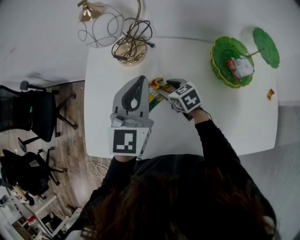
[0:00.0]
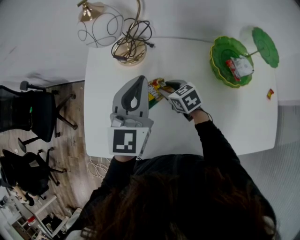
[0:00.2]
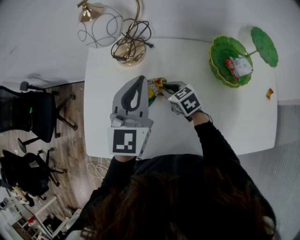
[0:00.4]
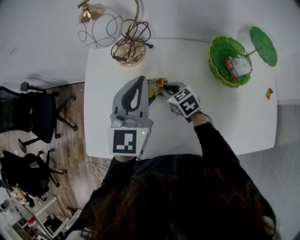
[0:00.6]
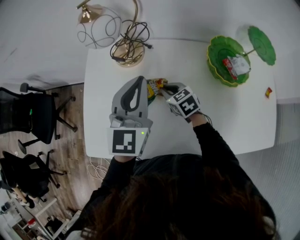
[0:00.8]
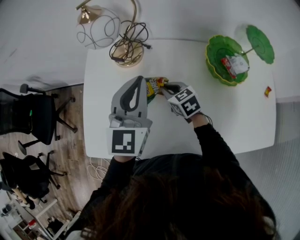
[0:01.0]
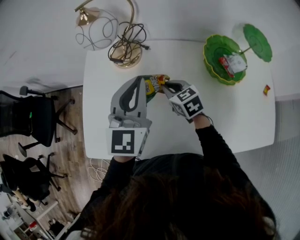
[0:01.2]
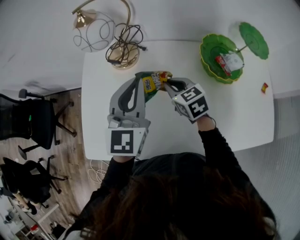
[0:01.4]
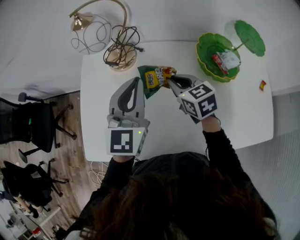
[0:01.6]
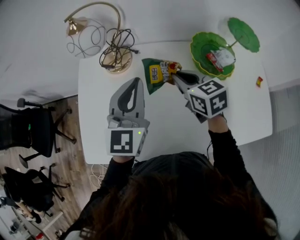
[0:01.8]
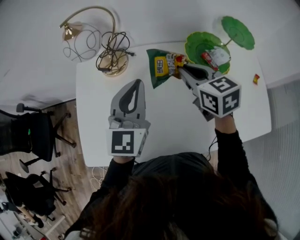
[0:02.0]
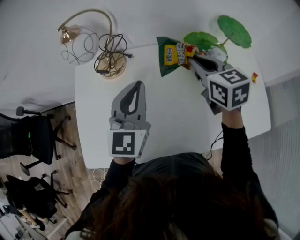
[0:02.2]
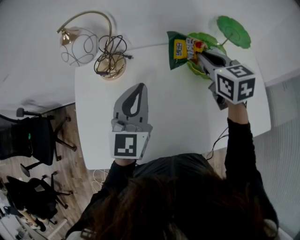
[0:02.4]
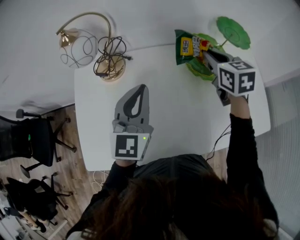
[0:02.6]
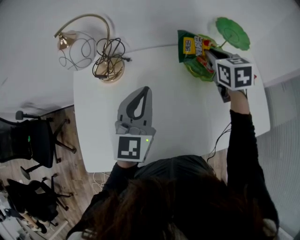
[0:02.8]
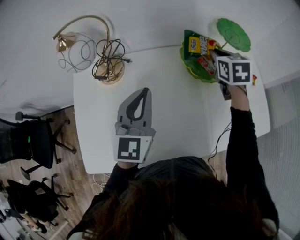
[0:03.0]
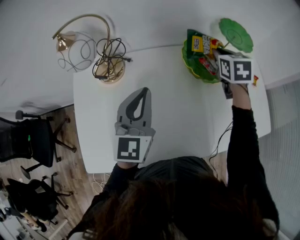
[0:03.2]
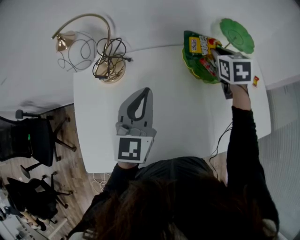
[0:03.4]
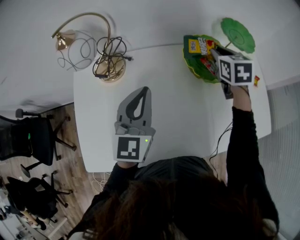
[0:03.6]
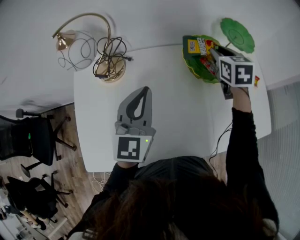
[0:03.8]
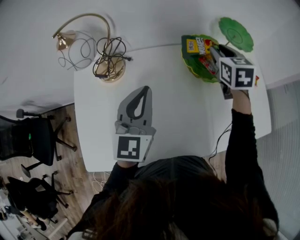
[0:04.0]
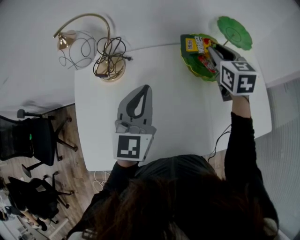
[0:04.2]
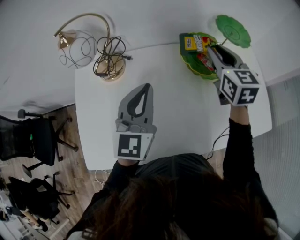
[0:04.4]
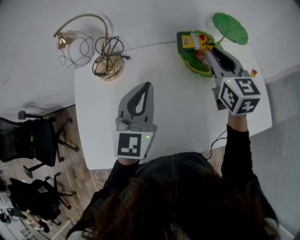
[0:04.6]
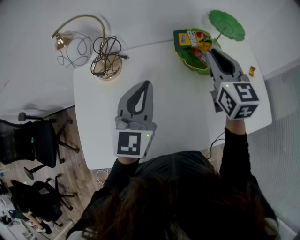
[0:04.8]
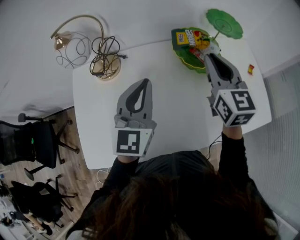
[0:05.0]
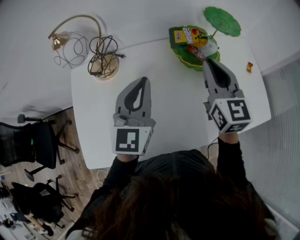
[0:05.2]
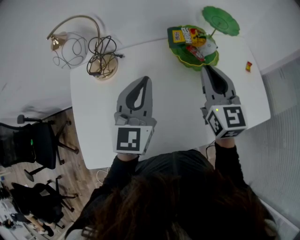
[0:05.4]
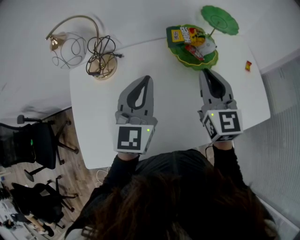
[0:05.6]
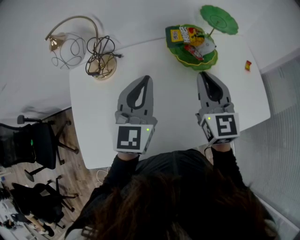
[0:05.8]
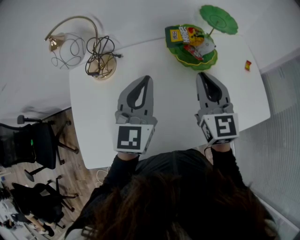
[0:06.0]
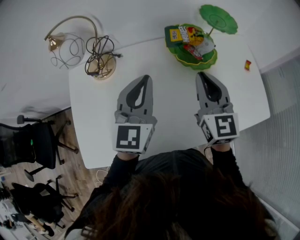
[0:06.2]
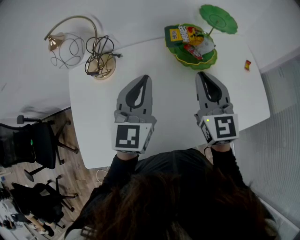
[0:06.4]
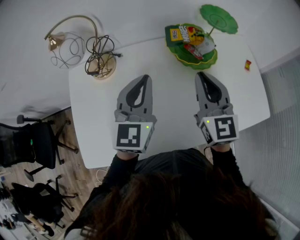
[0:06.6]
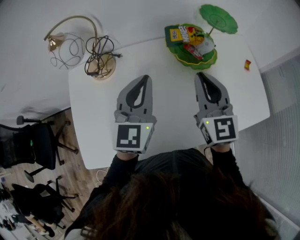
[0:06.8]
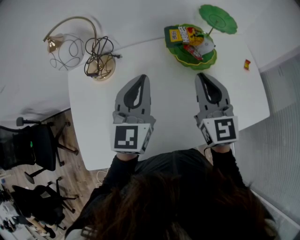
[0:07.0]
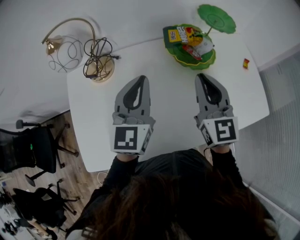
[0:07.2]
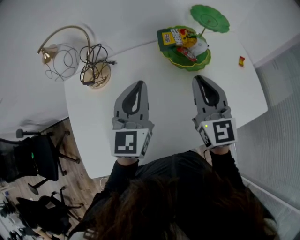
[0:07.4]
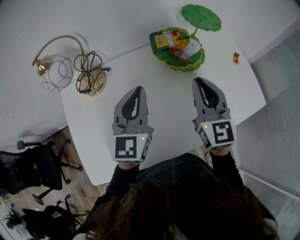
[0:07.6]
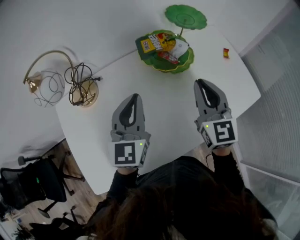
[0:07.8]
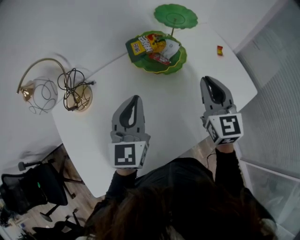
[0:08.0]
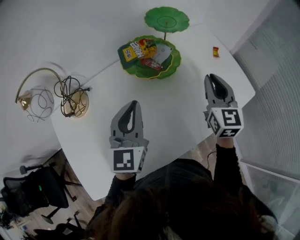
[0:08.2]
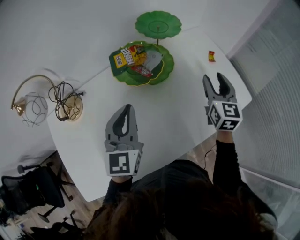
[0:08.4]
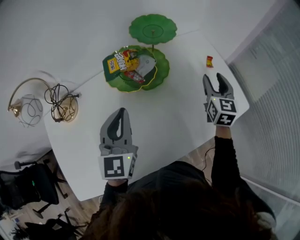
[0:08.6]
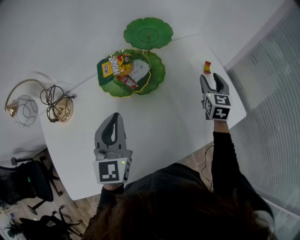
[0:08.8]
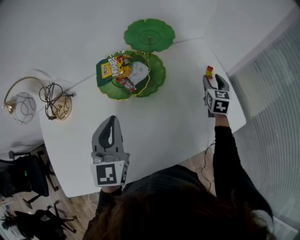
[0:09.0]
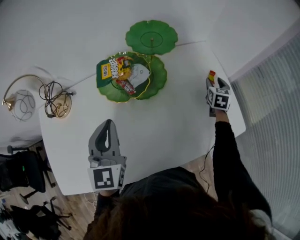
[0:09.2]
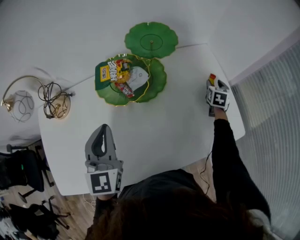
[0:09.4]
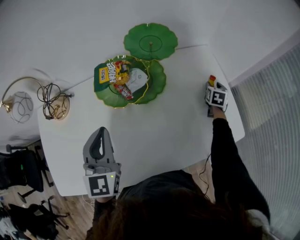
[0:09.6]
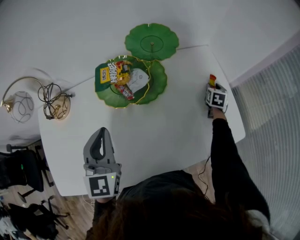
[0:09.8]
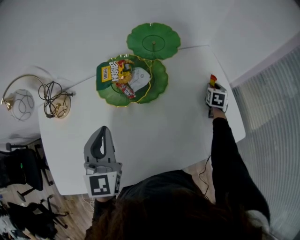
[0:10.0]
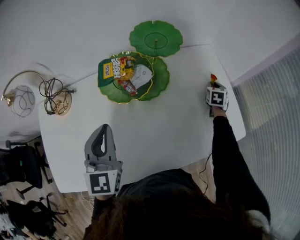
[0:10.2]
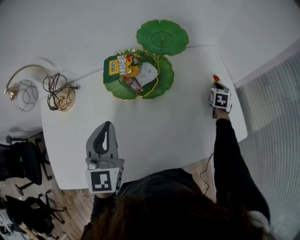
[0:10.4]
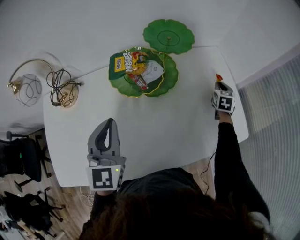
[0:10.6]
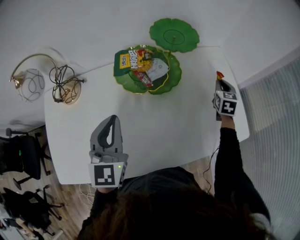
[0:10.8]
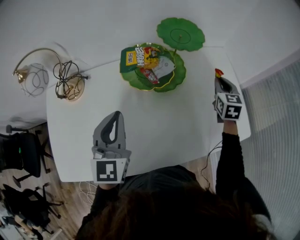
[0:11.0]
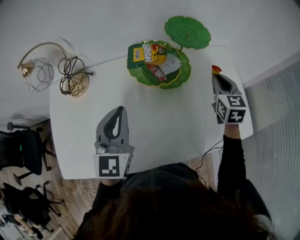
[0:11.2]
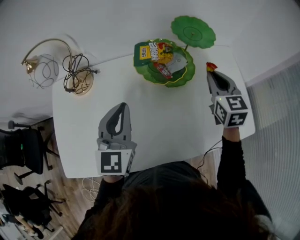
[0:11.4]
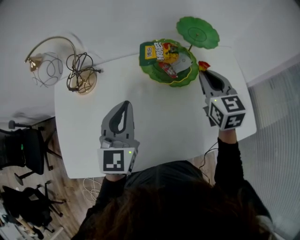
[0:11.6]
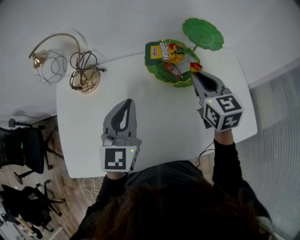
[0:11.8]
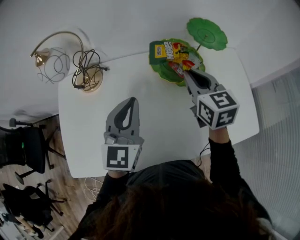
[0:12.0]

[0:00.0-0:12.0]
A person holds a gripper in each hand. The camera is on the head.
0:00.0 to 0:01.6: The right gripper moves upward and to the right, about 15 cm, and closes up.
0:01.6 to 0:03.0: The left gripper goes approximately 5 cm to the right. The right gripper travels to the right and forward by about 25 cm, and swivels about 30 degrees.
0:03.0 to 0:04.4: The right gripper goes some 5 cm upward, and rotates approximately 20 degrees.
0:04.4 to 0:06.0: The right gripper heads backward, covering about 15 cm.
0:06.0 to 0:07.6: There are only small adjustments of the grippers.
0:07.6 to 0:09.0: The left gripper goes roughly 10 cm to the right, while the right gripper is displaced to the right, forward and downward by about 40 cm, swivels about 30 degrees, and opens.
0:09.0 to 0:10.4: The right gripper goes approximately 10 cm downward and forward, and closes up.
0:10.4 to 0:12.0: The right gripper heads to the left and upward, covering about 50 cm, and rotates approximately 40 degrees, while the left gripper is displaced to the left by roughly 10 cm.

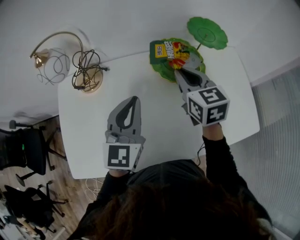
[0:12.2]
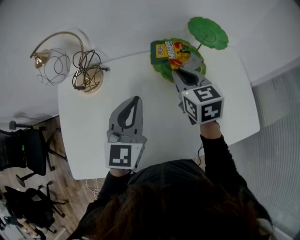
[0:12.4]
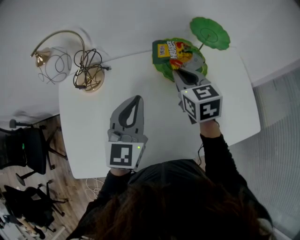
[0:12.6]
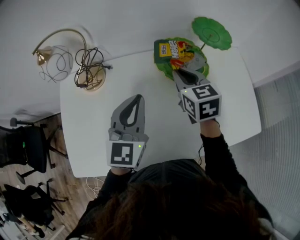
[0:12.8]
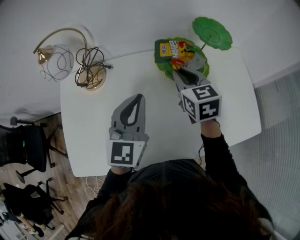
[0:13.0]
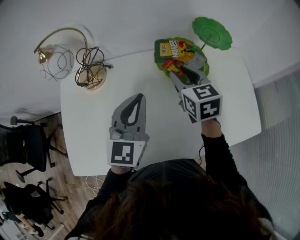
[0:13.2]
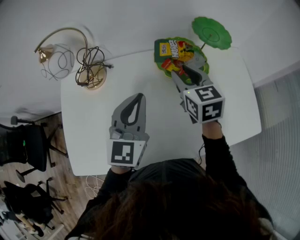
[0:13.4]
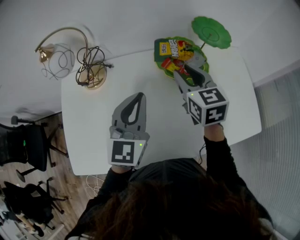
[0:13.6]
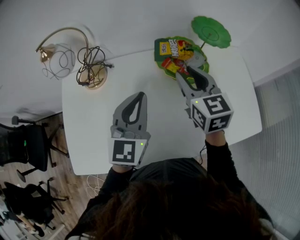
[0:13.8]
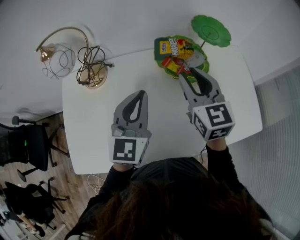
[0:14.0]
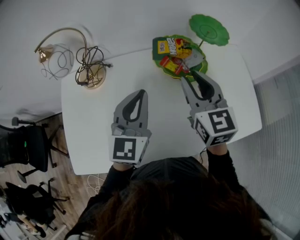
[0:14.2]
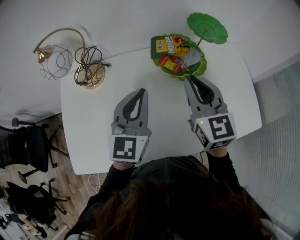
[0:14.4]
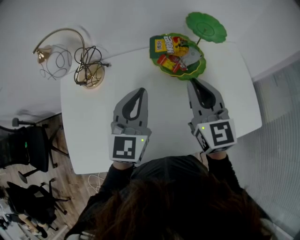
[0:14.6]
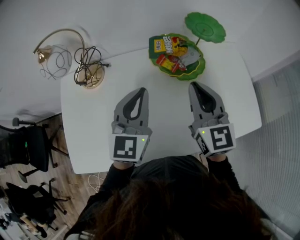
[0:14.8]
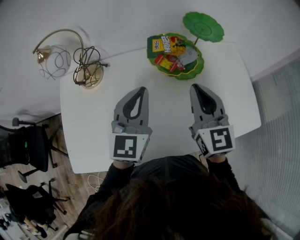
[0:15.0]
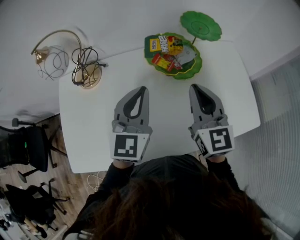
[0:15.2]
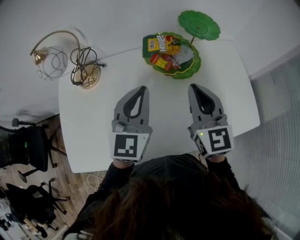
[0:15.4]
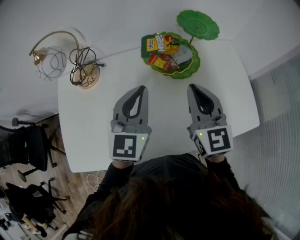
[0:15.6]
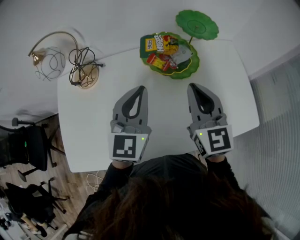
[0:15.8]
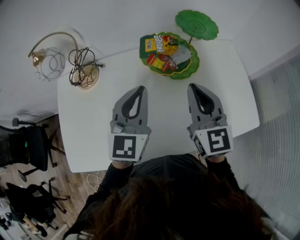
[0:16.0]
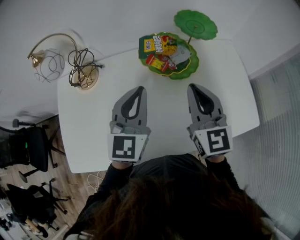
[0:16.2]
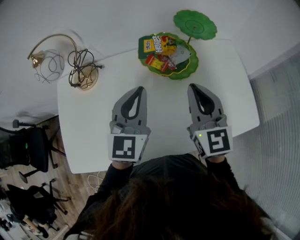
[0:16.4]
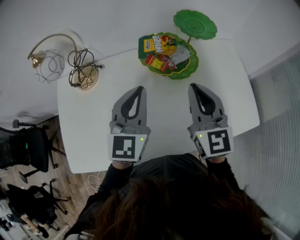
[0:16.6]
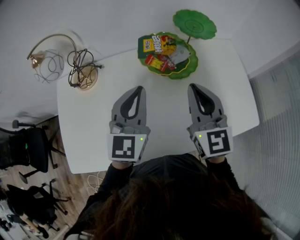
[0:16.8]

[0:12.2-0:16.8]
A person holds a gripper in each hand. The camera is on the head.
0:12.2 to 0:13.8: The grippers move only a little.
0:13.8 to 0:15.2: The right gripper is displaced backward and to the right by some 10 cm.
0:15.2 to 0:16.8: The grippers move only a little.

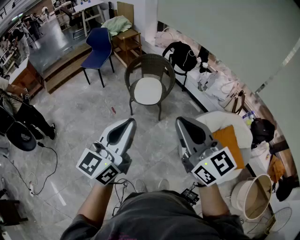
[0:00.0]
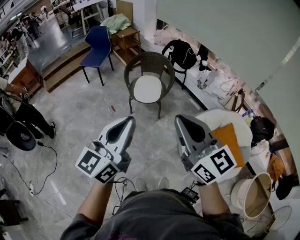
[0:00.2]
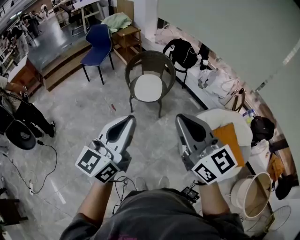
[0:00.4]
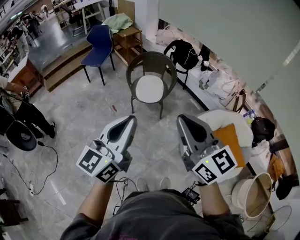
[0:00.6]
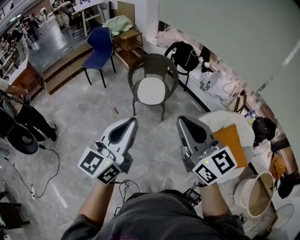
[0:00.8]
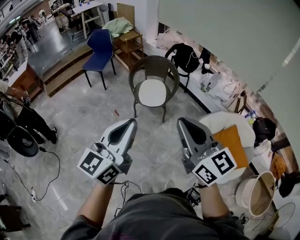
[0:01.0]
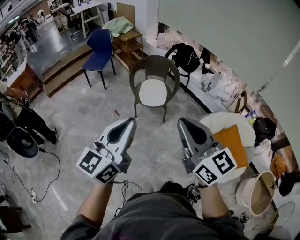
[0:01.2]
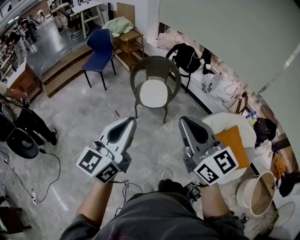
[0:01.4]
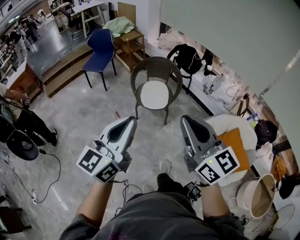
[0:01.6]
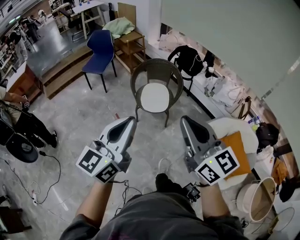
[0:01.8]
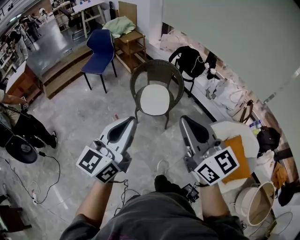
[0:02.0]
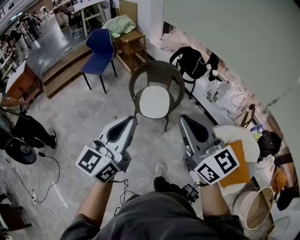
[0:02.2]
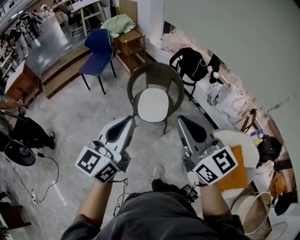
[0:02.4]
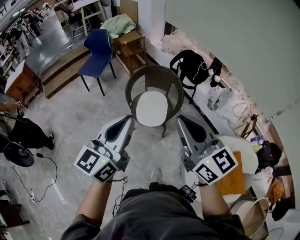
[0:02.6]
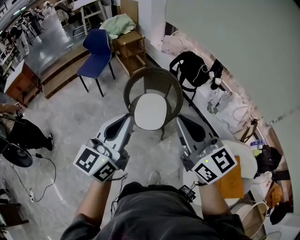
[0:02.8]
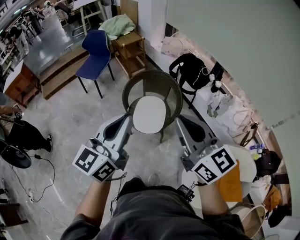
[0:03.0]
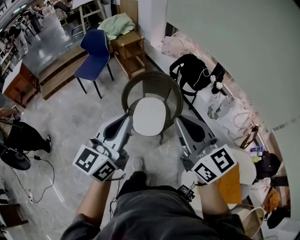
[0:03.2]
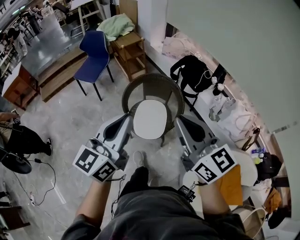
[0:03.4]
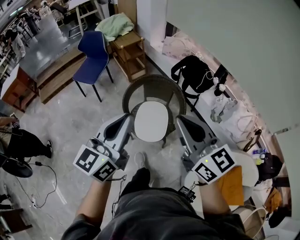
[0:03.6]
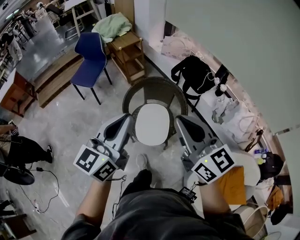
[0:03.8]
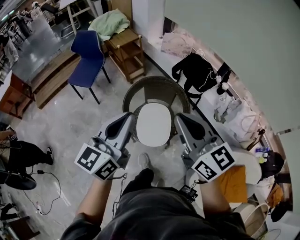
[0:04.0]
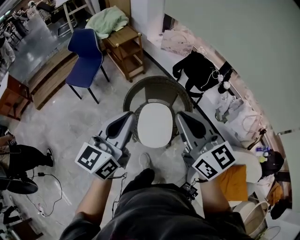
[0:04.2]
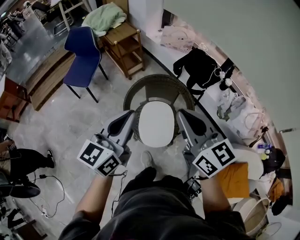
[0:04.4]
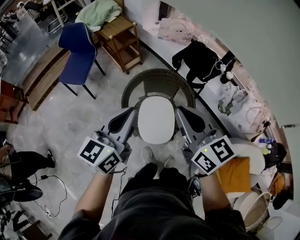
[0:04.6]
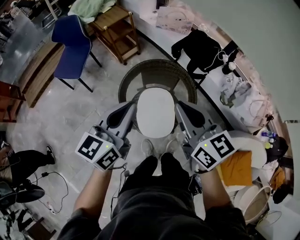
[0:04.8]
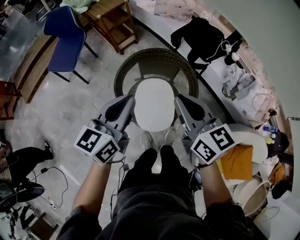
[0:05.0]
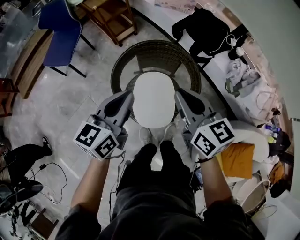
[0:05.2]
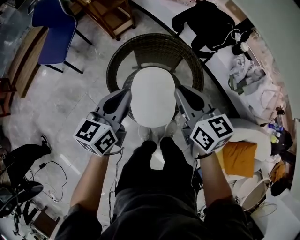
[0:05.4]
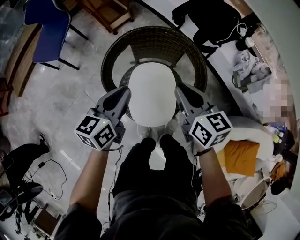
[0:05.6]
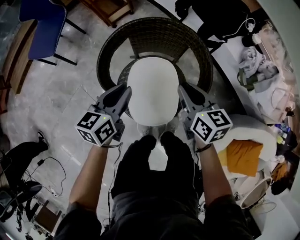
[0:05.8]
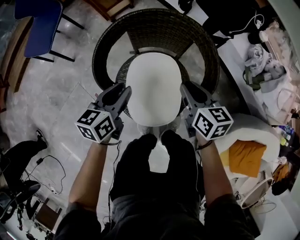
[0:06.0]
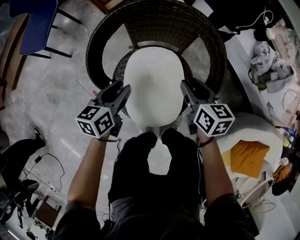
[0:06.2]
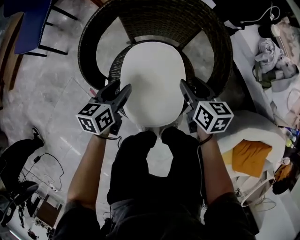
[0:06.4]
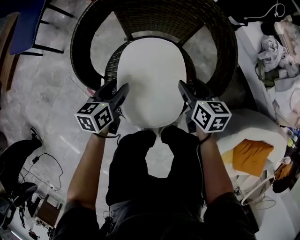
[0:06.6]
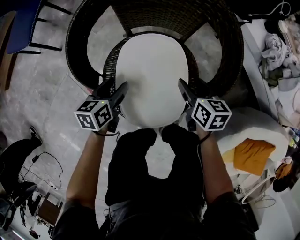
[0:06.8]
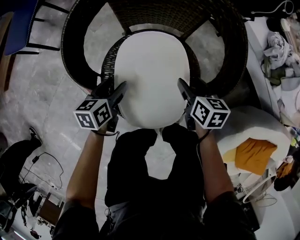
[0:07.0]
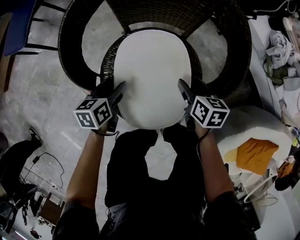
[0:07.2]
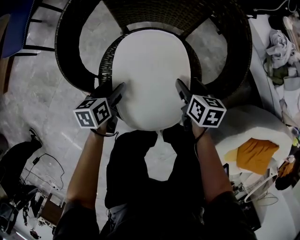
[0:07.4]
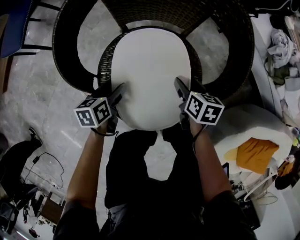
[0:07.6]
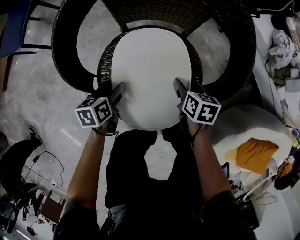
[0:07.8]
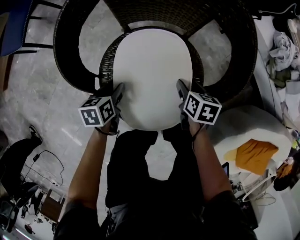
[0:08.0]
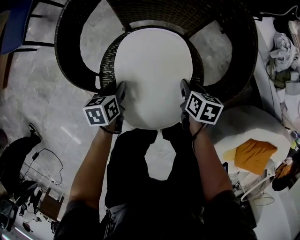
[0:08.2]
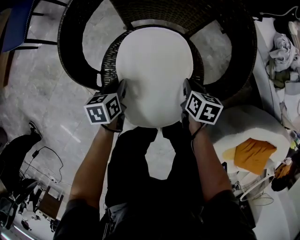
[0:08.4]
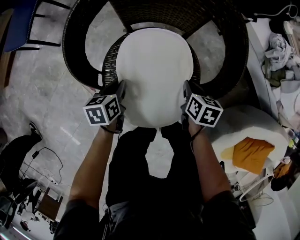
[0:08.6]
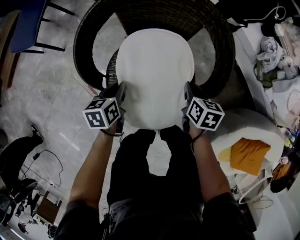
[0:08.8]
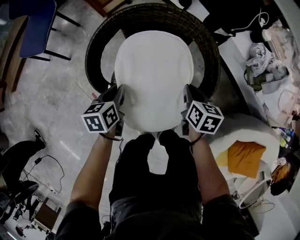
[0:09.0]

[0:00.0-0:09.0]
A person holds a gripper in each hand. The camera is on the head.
0:00.0 to 0:01.6: The two grippers go some 10 cm to the left and forward.
0:01.6 to 0:03.0: Both grippers travel together forward, some 30 cm.
0:03.0 to 0:04.4: The grippers both shift forward by some 25 cm.
0:04.4 to 0:06.0: Both grippers travel together downward, about 50 cm. The left gripper turns by about 30 degrees, and opens its fingers. Meanwhile the right gripper turns by approximately 30 degrees.
0:06.0 to 0:07.6: Both grippers move downward, about 25 cm. The right gripper turns by approximately 20 degrees, and opens. Meanwhile the left gripper turns by roughly 20 degrees, and opens its fingers.
0:07.6 to 0:09.0: The grippers both shift upward by some 20 cm. The right gripper closes, while the left gripper closes its fingers.
